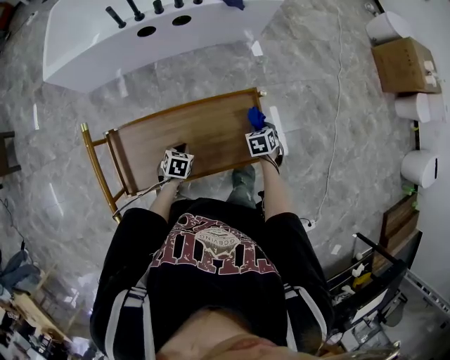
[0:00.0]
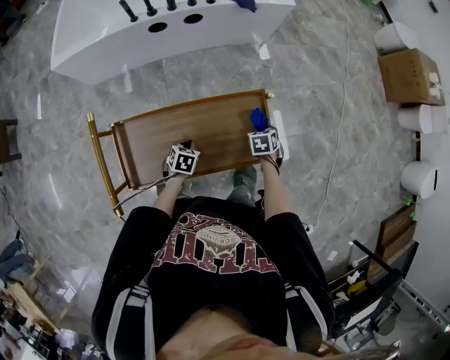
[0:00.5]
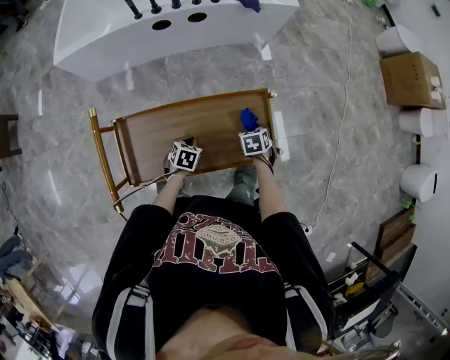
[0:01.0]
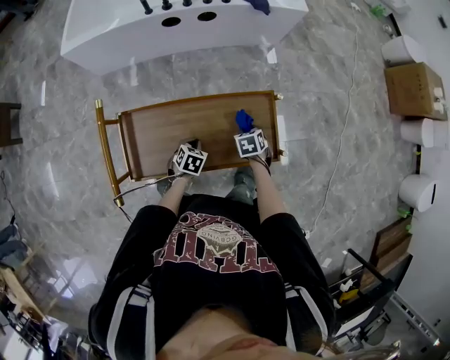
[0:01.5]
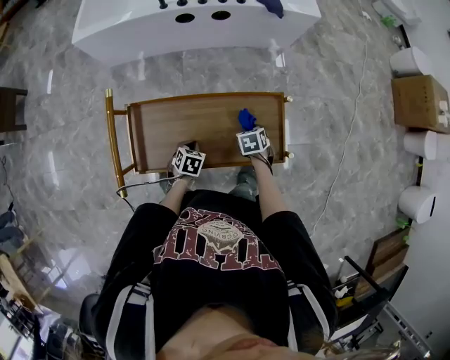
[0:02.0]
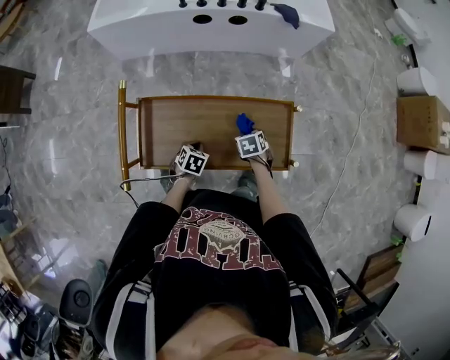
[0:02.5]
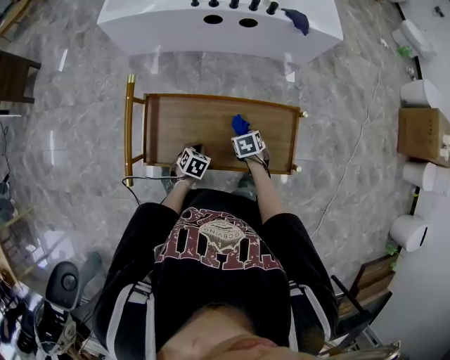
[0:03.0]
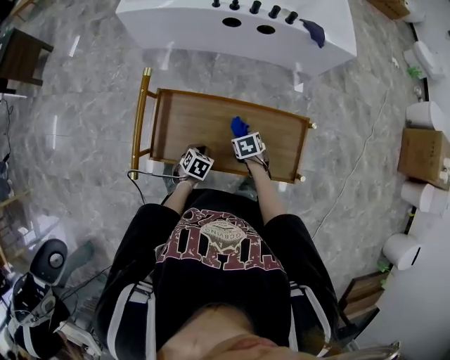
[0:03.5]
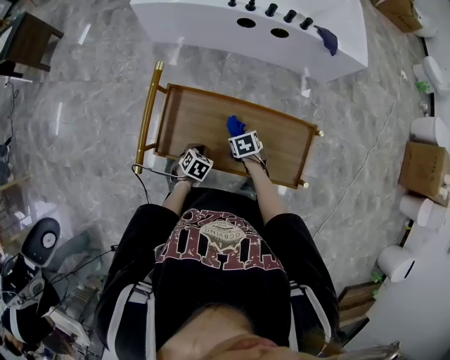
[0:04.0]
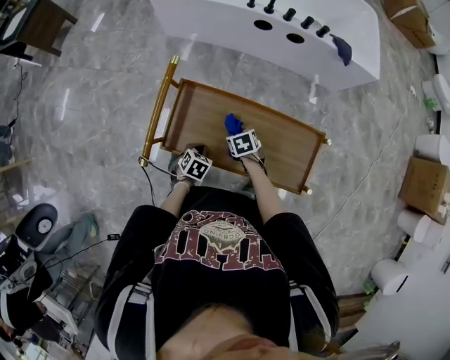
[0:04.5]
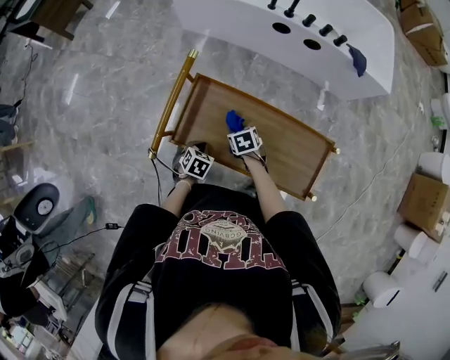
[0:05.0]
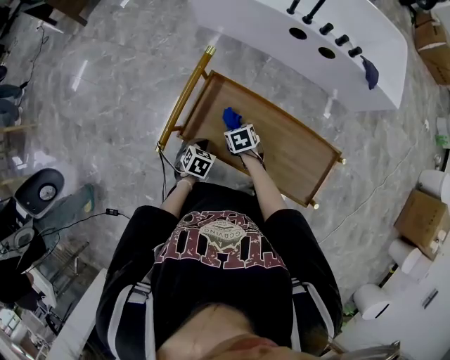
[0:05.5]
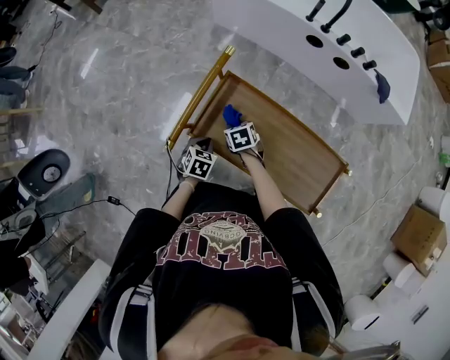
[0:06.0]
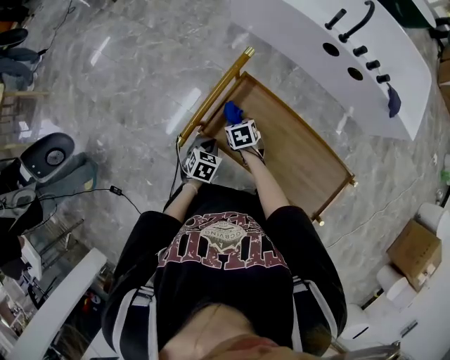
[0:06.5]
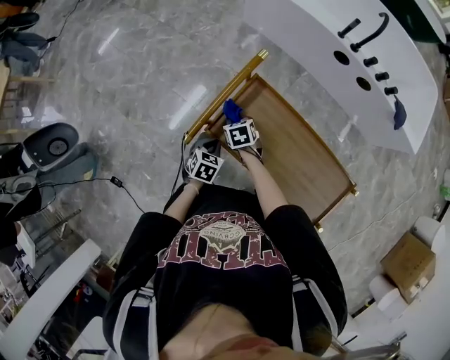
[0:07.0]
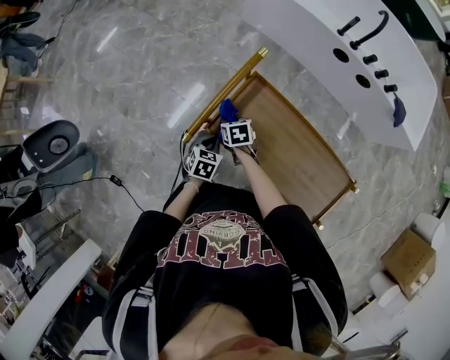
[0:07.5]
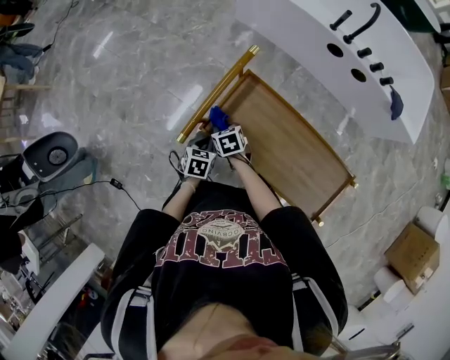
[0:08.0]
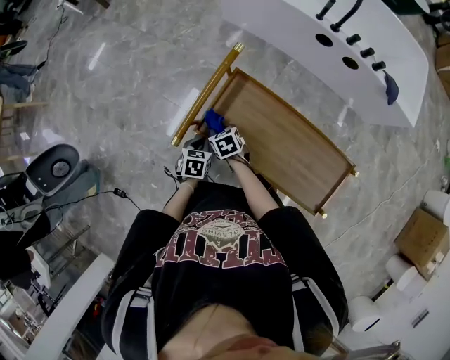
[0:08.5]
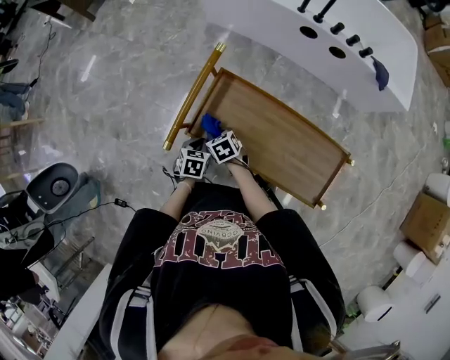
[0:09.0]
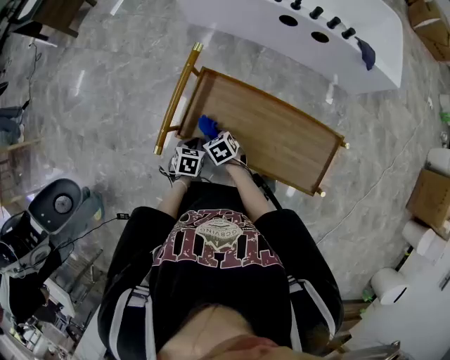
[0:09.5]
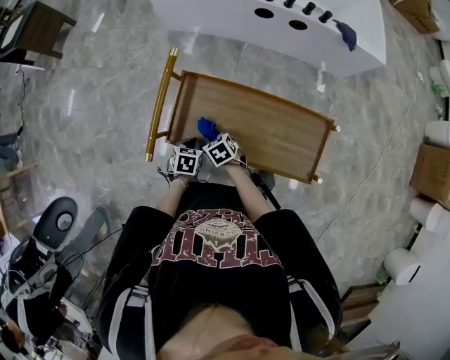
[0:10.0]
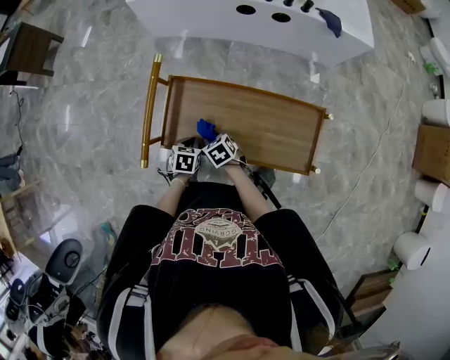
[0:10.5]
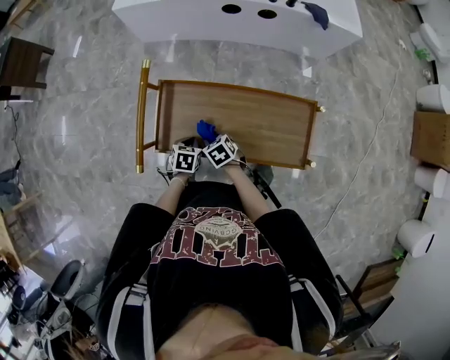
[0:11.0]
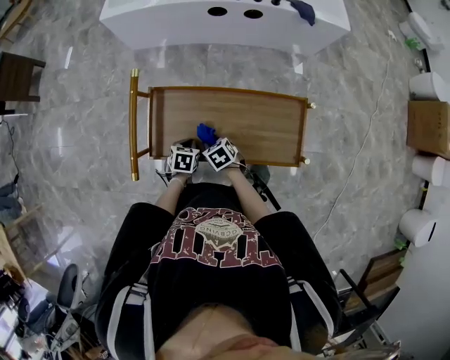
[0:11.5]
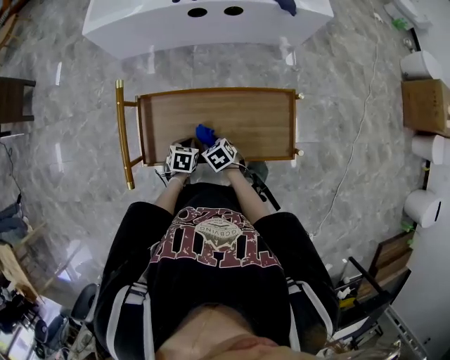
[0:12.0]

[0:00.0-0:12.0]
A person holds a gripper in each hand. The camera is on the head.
0:00.0 to 0:02.0: The left gripper changes place by approximately 5 cm; the right gripper goes some 10 cm to the left.
0:02.0 to 0:04.0: The left gripper ends up about 10 cm from where it was; the right gripper ends up some 20 cm from where it was, and rotates some 20 degrees.
0:04.0 to 0:06.0: The two grippers go some 15 cm to the left. The left gripper turns by roughly 30 degrees. The right gripper changes its angle by some 20 degrees.
0:06.0 to 0:08.0: The left gripper shifts some 5 cm to the left; the right gripper is displaced to the left by about 10 cm.
0:08.0 to 0:10.0: The left gripper is displaced to the right by approximately 10 cm; the right gripper travels to the right and backward by roughly 15 cm.
0:10.0 to 0:12.0: Both grippers move to the right, some 10 cm.

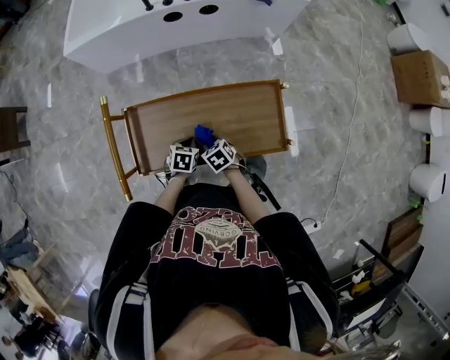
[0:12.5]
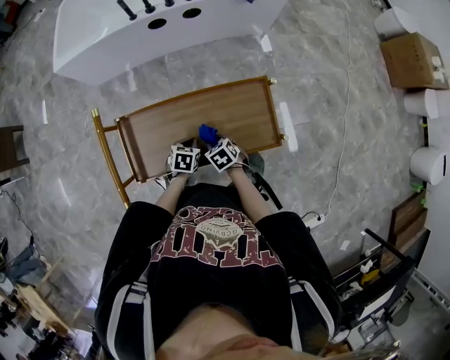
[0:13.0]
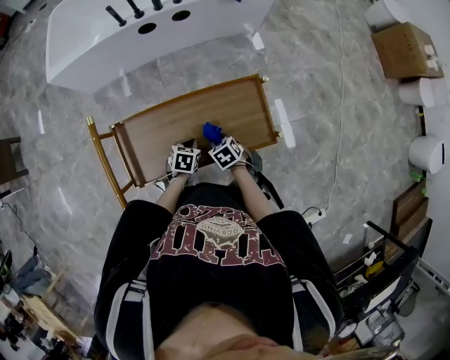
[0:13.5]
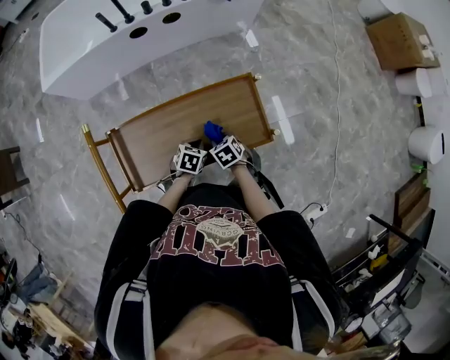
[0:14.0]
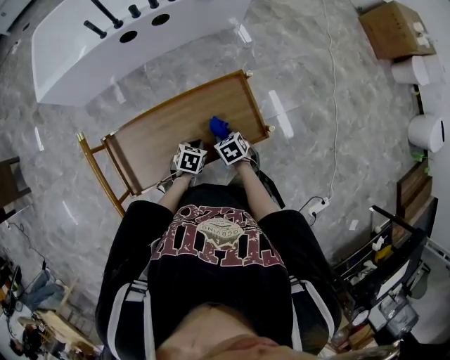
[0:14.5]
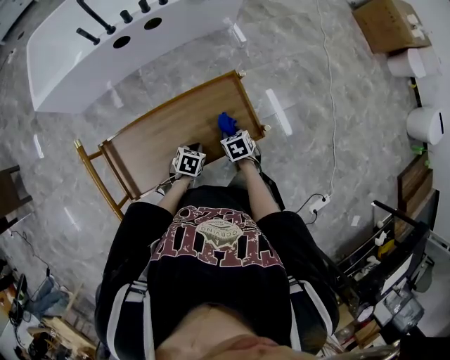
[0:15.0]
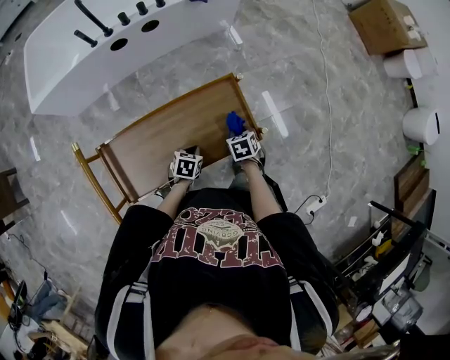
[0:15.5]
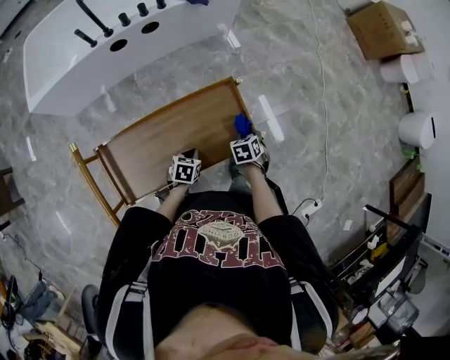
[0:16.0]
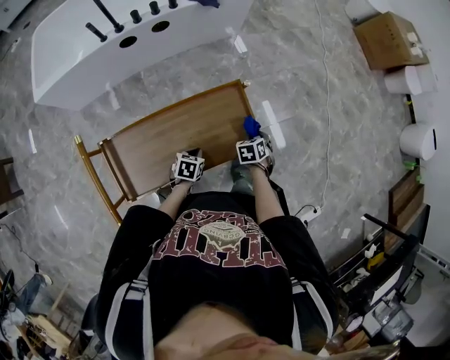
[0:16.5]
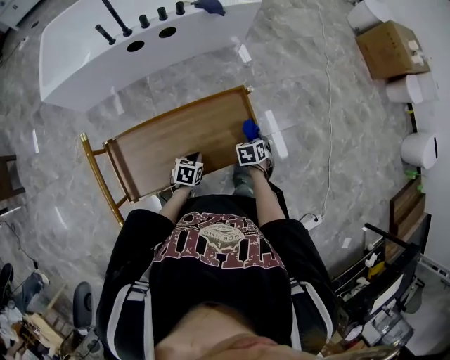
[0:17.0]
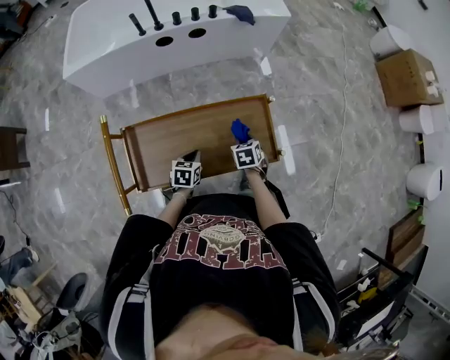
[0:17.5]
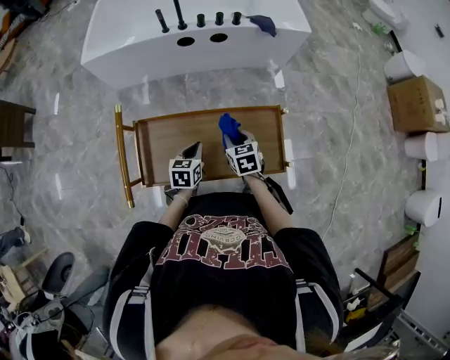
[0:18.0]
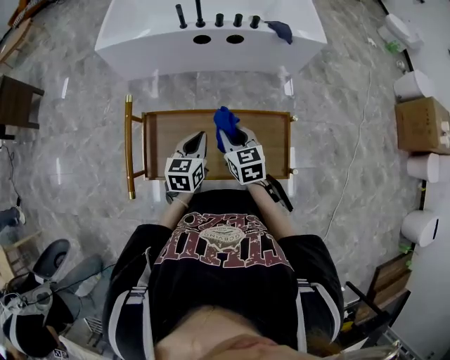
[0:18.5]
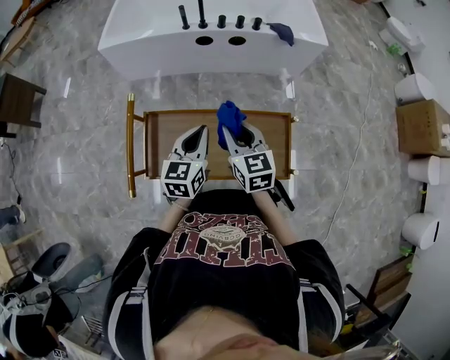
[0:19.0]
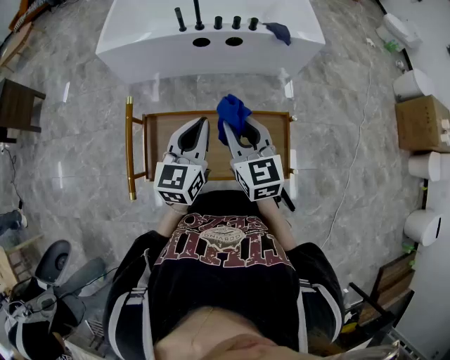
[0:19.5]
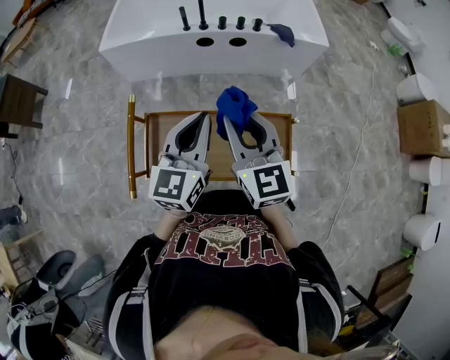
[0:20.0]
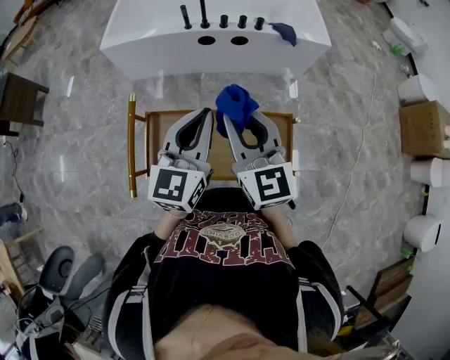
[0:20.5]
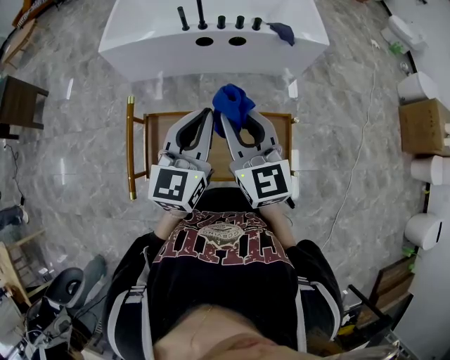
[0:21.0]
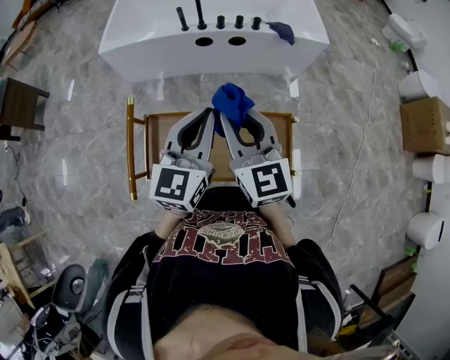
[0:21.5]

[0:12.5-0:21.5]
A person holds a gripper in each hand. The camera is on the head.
0:12.5 to 0:14.5: The grippers both shift to the right by roughly 15 cm. The left gripper changes its angle by some 20 degrees.
0:14.5 to 0:17.0: The right gripper ends up some 15 cm from where it was, and rotates approximately 30 degrees.
0:17.0 to 0:19.5: The two grippers go approximately 35 cm upward. The right gripper points its fingers roughly 50 degrees further upward; the left gripper points its fingers approximately 40 degrees further upward.
0:19.5 to 0:21.5: The grippers both shift upward by about 5 cm.

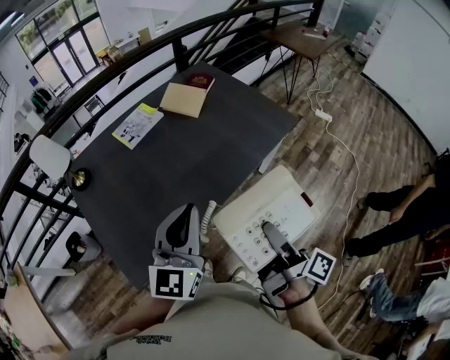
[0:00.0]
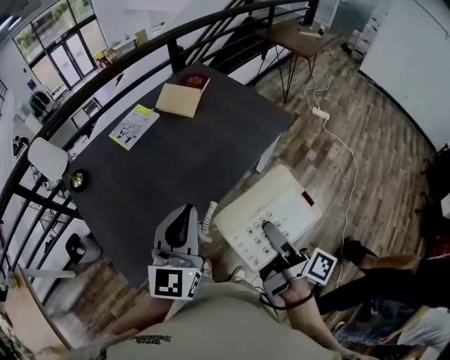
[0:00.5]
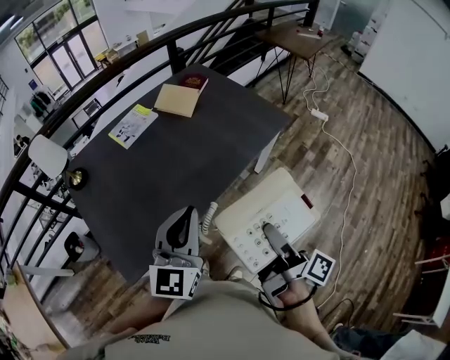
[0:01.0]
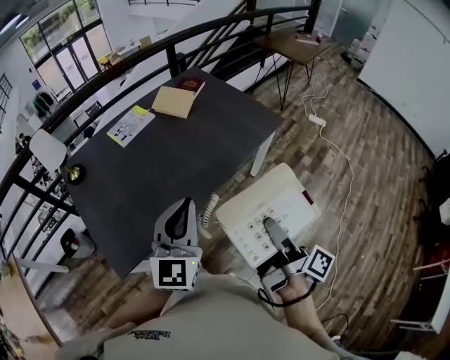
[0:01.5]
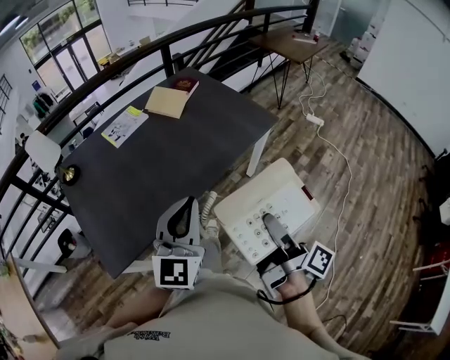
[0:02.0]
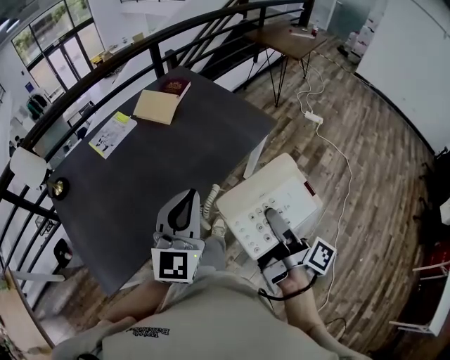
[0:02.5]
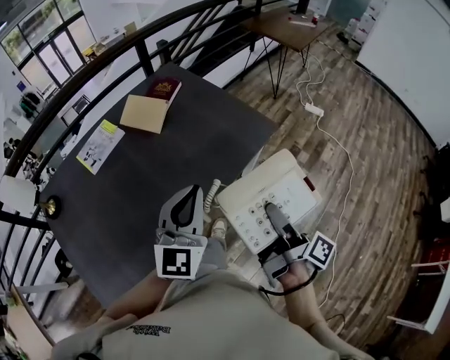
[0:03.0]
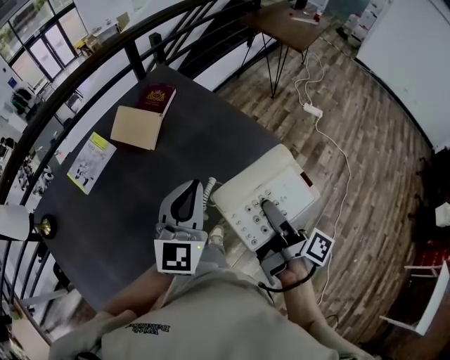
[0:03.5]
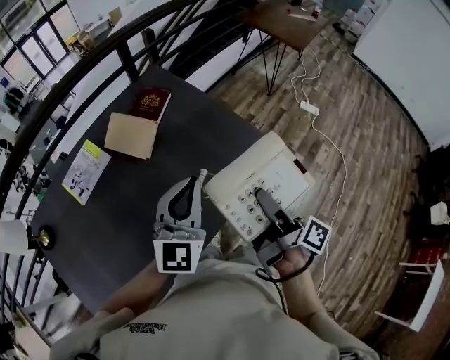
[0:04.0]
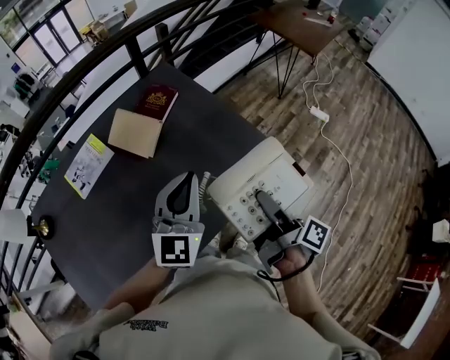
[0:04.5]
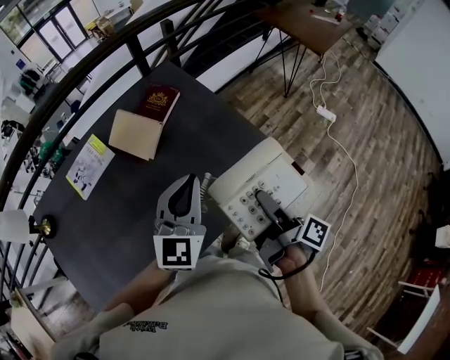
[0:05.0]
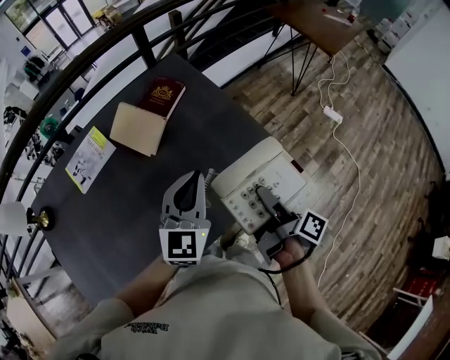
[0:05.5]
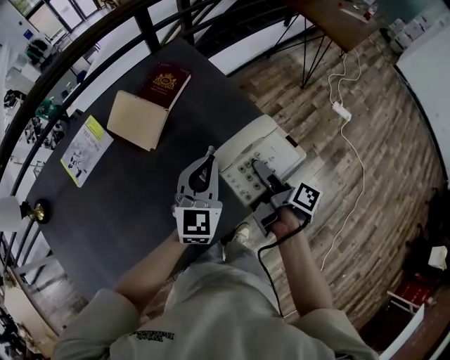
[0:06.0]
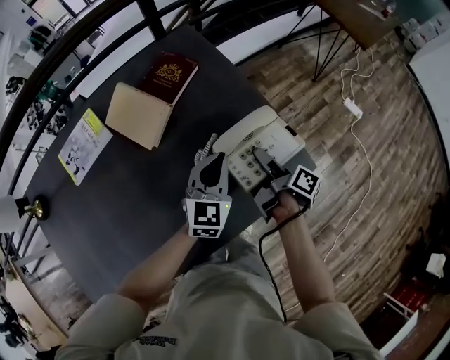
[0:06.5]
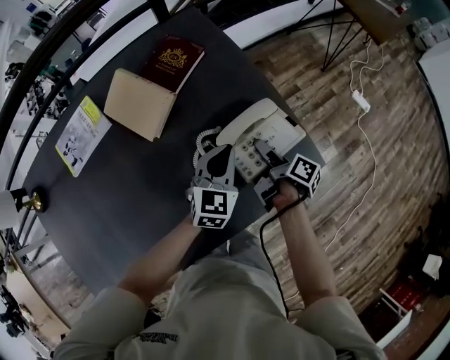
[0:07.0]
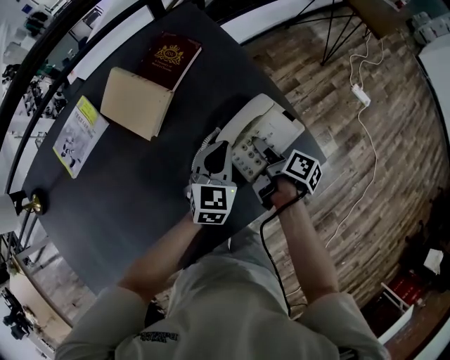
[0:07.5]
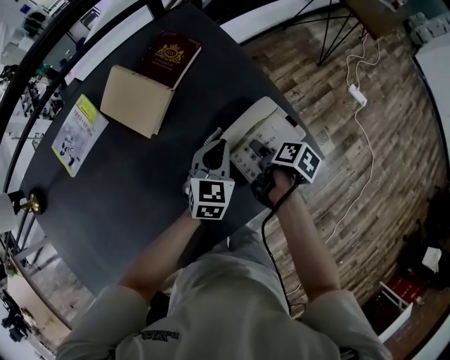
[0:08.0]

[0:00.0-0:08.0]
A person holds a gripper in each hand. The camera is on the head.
0:00.0 to 0:02.0: The left gripper changes place by roughly 10 cm.
0:02.0 to 0:04.0: The left gripper ends up roughly 40 cm from where it was.
0:04.0 to 0:06.0: The left gripper travels downward by roughly 15 cm.
0:06.0 to 0:08.0: The left gripper goes approximately 15 cm downward.
